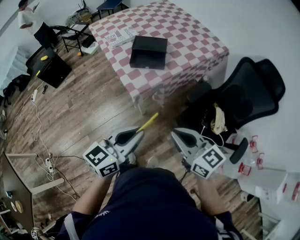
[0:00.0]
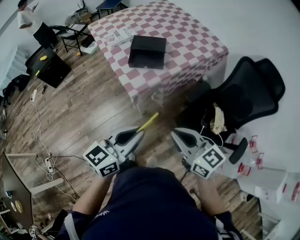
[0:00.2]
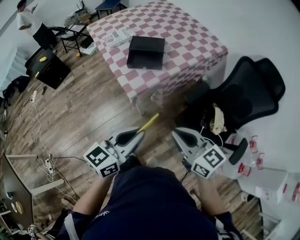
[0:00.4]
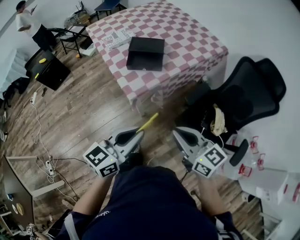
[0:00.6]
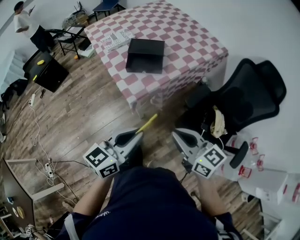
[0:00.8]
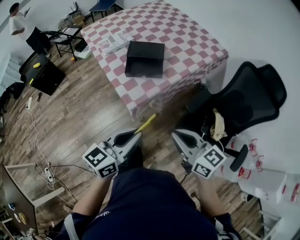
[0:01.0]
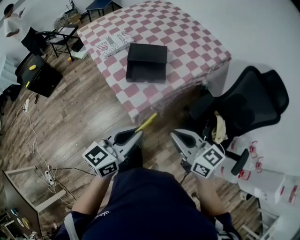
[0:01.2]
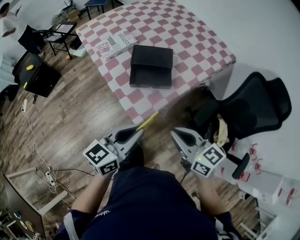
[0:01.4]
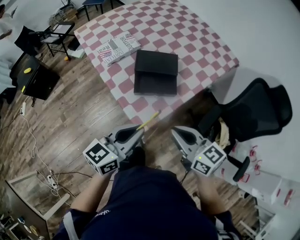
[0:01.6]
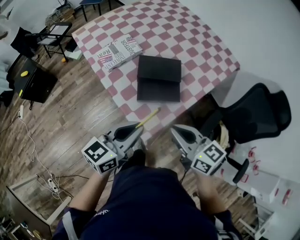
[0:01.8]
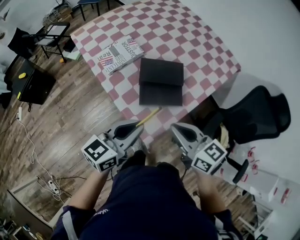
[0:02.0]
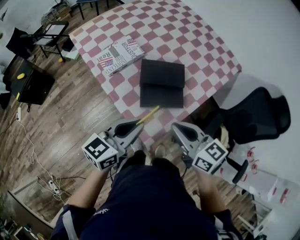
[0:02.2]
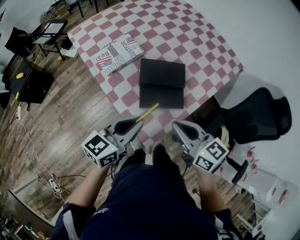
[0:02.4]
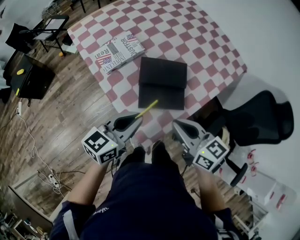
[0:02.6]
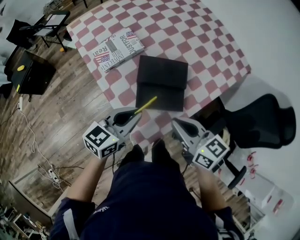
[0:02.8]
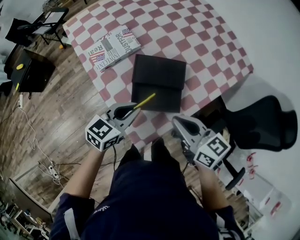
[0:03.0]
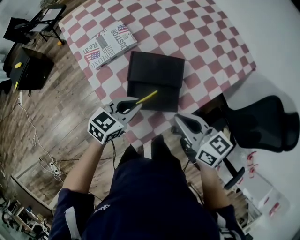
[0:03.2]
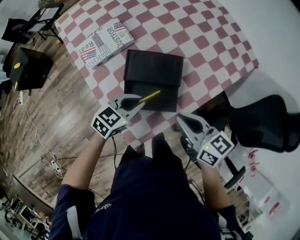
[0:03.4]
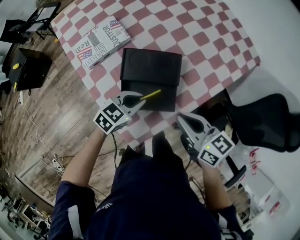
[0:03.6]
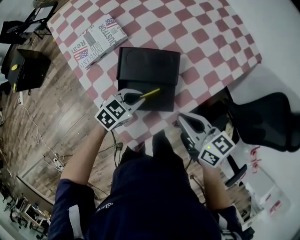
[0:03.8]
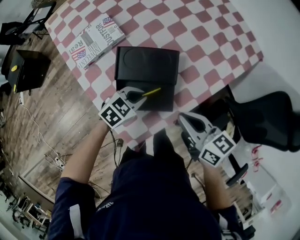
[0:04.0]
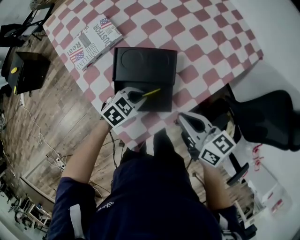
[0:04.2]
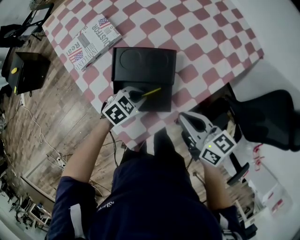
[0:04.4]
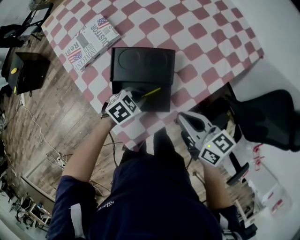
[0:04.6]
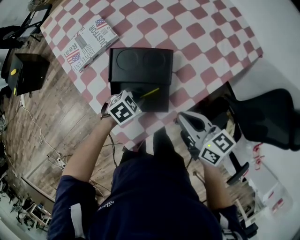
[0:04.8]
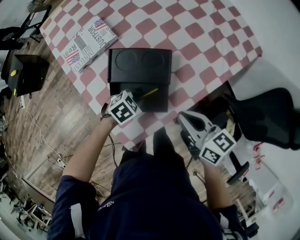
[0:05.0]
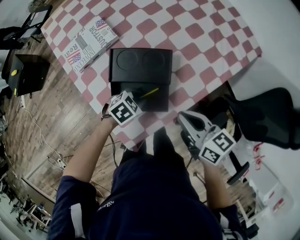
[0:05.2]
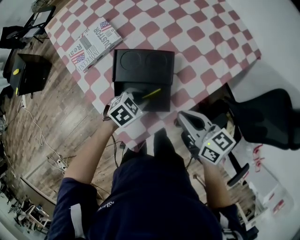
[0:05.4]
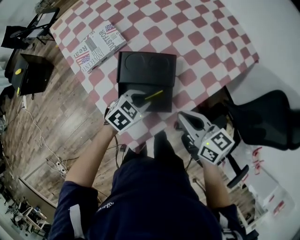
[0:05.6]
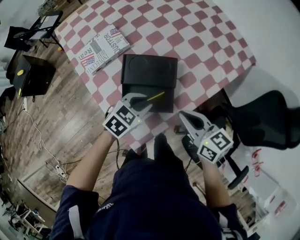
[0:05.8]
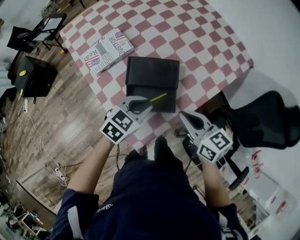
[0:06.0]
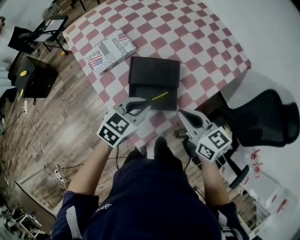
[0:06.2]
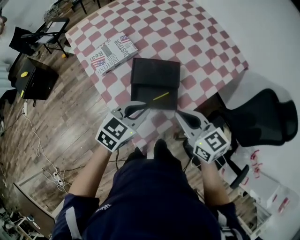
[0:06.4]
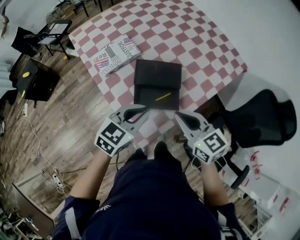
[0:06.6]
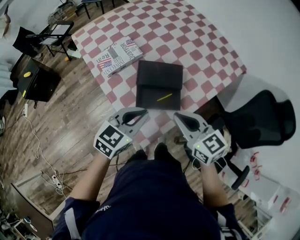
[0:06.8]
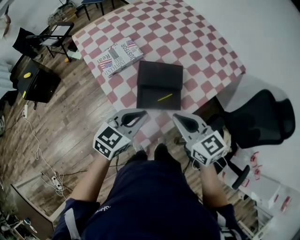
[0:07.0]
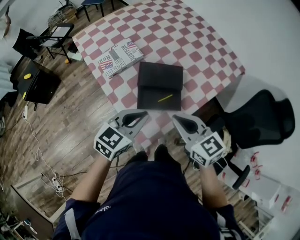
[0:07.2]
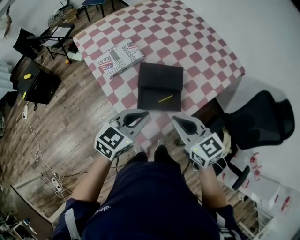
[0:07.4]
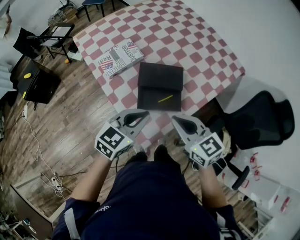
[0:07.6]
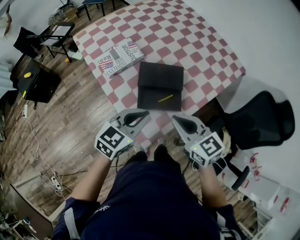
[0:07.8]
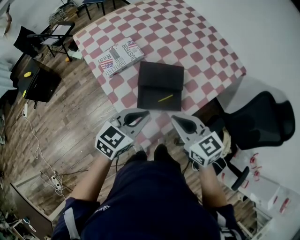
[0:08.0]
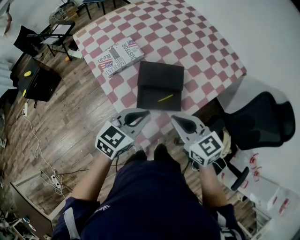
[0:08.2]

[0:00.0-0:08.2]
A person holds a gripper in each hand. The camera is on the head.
0.0 to 1.6 s: Both grippers travel together forward, about 25 cm.
1.6 to 3.2 s: The right gripper shifts about 20 cm forward; the left gripper shifts approximately 25 cm forward and downward, and turns by about 20 degrees.
3.2 to 5.0 s: The left gripper heads downward, covering some 15 cm, and angles its fingers downward, by approximately 30 degrees. The right gripper ends up about 10 cm from where it was.
5.0 to 6.6 s: The left gripper heads upward, covering about 25 cm, and angles its fingers upward, by some 30 degrees; the right gripper ends up approximately 15 cm from where it was, and rotates approximately 20 degrees.
6.6 to 8.2 s: The grippers move only a little.

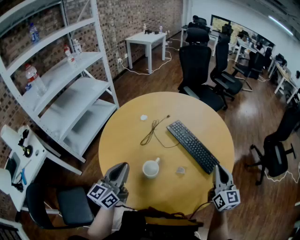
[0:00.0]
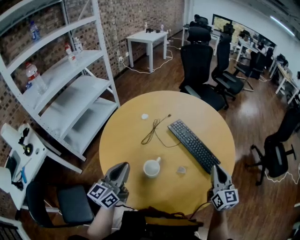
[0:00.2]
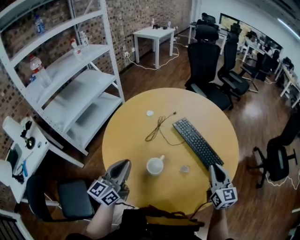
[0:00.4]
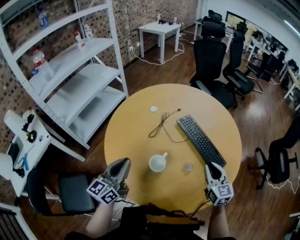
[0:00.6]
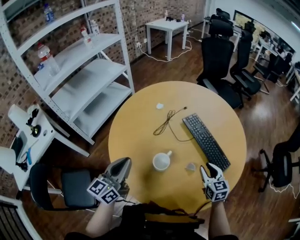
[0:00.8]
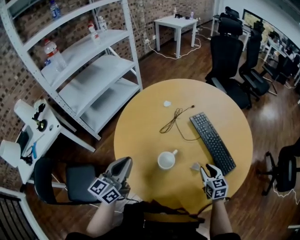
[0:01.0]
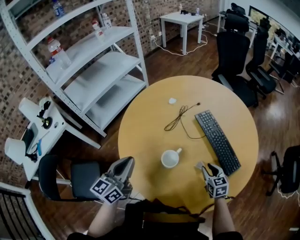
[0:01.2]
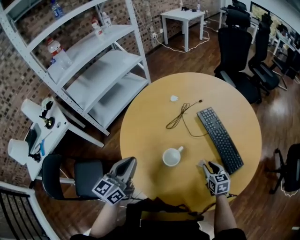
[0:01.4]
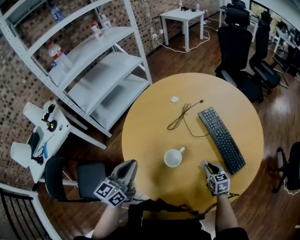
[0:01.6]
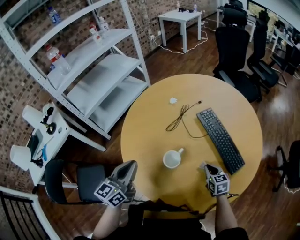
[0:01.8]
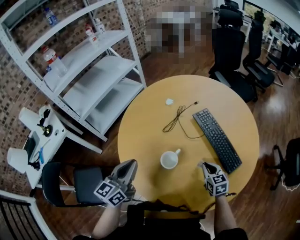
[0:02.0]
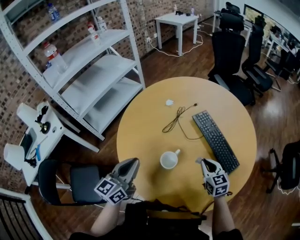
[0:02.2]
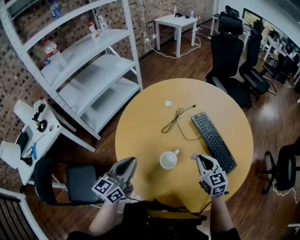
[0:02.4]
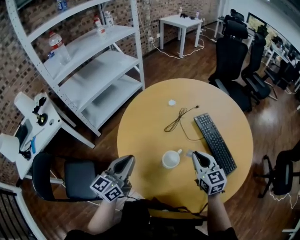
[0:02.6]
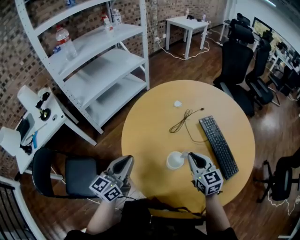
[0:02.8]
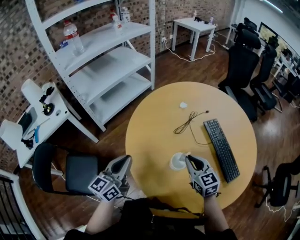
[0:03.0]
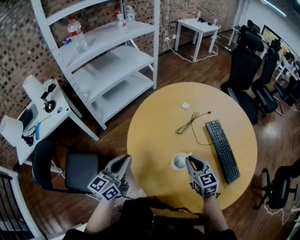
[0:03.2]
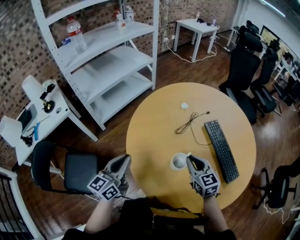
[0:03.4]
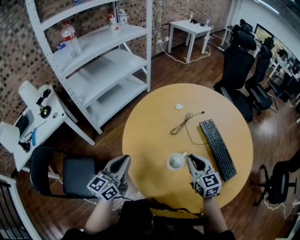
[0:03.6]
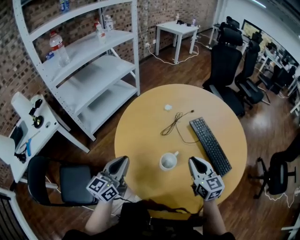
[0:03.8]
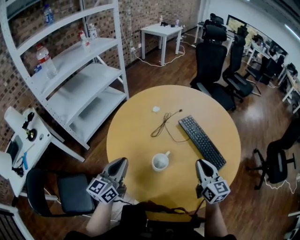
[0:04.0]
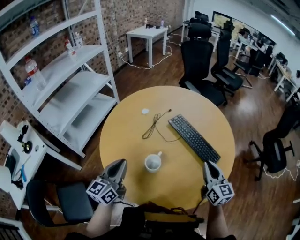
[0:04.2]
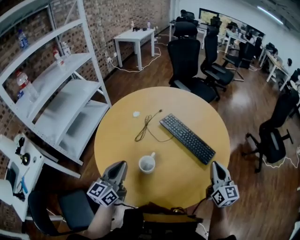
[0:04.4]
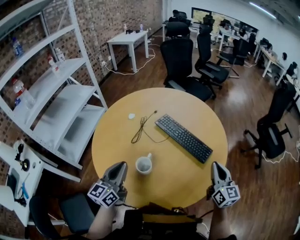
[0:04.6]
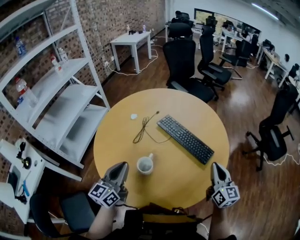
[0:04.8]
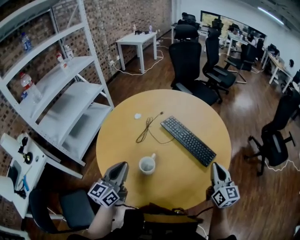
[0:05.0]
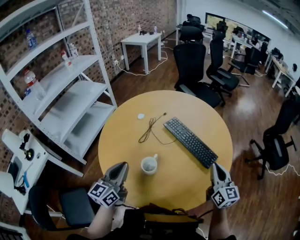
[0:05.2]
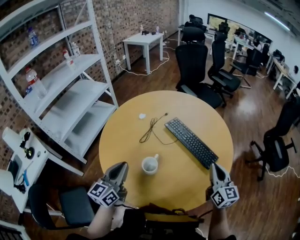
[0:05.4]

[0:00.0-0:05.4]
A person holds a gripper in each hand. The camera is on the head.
0.0 to 1.4 s: The right gripper shifts roughly 25 cm downward and to the left, tips its fingers downward by approximately 40 degrees, and opens.
1.4 to 2.8 s: The right gripper travels upward and to the left by approximately 20 cm, rotates about 20 degrees, and closes. Meanwhile the left gripper moves approximately 5 cm.
2.8 to 4.0 s: The right gripper shifts approximately 10 cm to the right and backward, and changes its angle by some 20 degrees.
4.0 to 5.4 s: The left gripper moves to the right, some 5 cm. The right gripper shifts about 15 cm to the right.

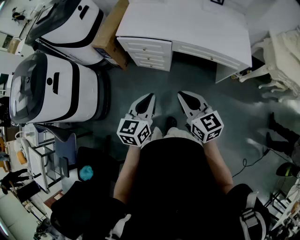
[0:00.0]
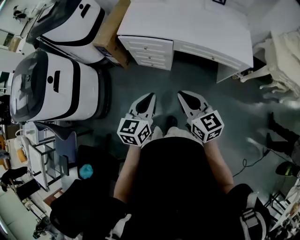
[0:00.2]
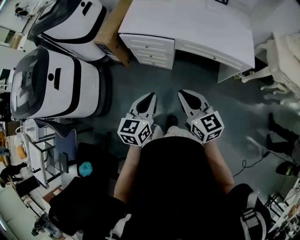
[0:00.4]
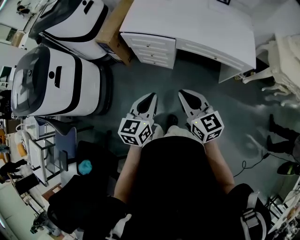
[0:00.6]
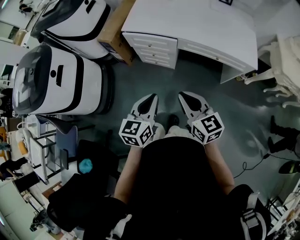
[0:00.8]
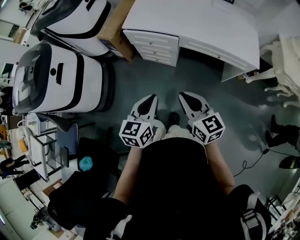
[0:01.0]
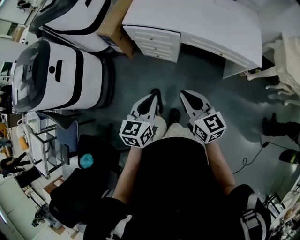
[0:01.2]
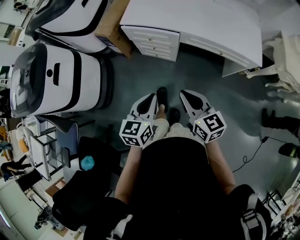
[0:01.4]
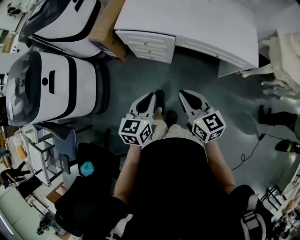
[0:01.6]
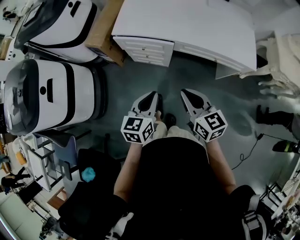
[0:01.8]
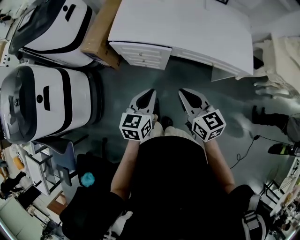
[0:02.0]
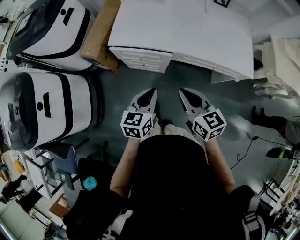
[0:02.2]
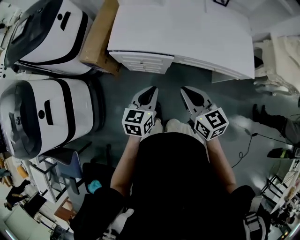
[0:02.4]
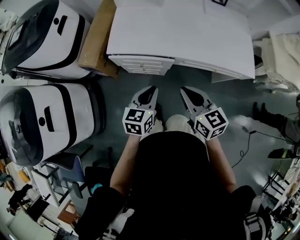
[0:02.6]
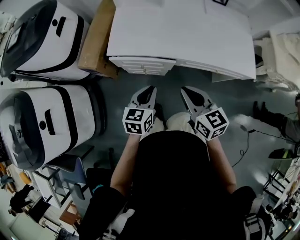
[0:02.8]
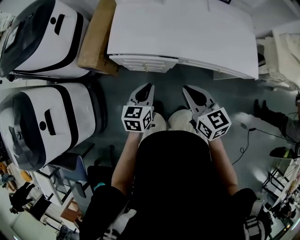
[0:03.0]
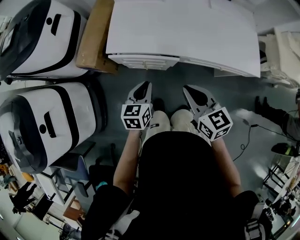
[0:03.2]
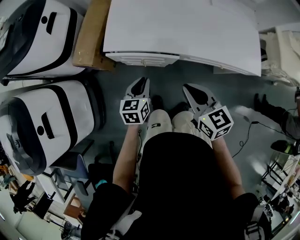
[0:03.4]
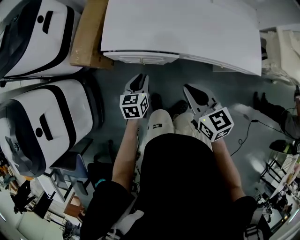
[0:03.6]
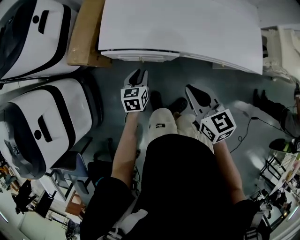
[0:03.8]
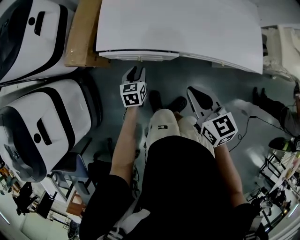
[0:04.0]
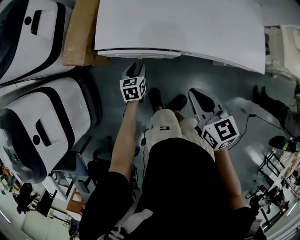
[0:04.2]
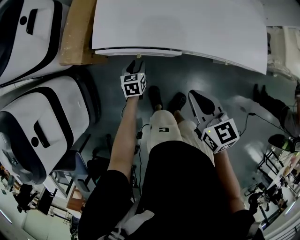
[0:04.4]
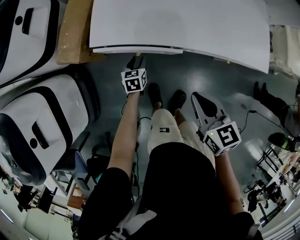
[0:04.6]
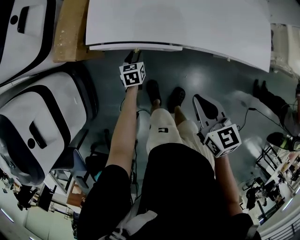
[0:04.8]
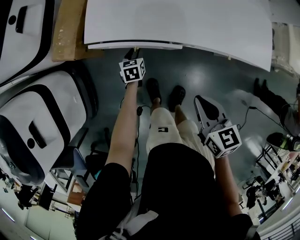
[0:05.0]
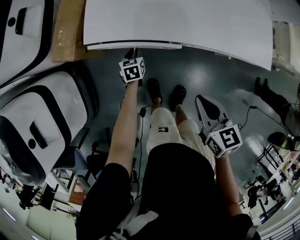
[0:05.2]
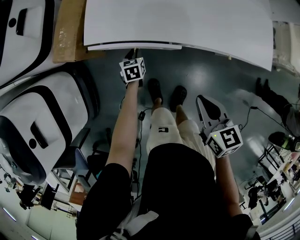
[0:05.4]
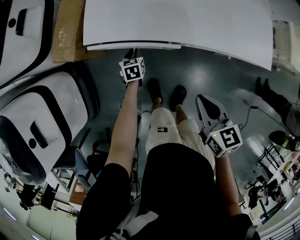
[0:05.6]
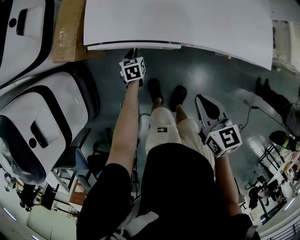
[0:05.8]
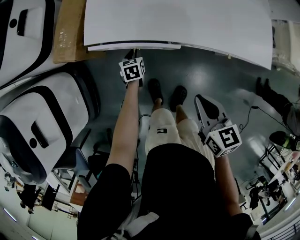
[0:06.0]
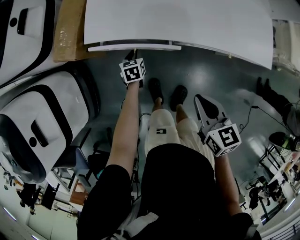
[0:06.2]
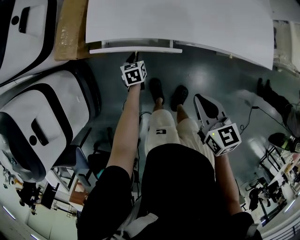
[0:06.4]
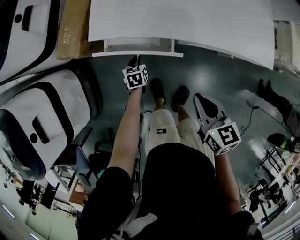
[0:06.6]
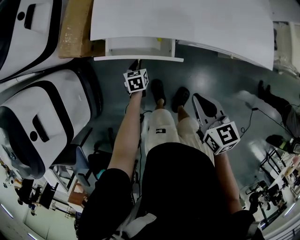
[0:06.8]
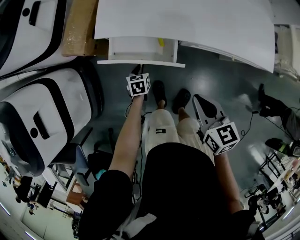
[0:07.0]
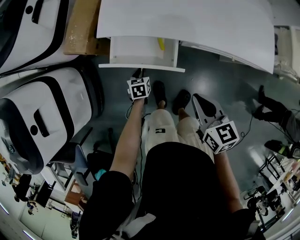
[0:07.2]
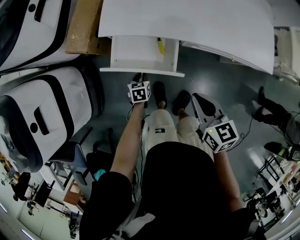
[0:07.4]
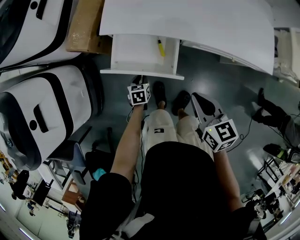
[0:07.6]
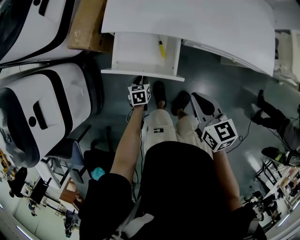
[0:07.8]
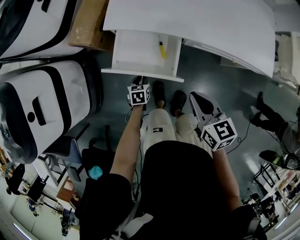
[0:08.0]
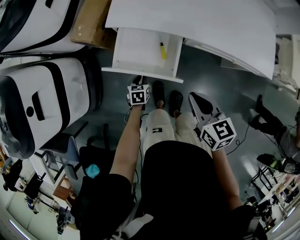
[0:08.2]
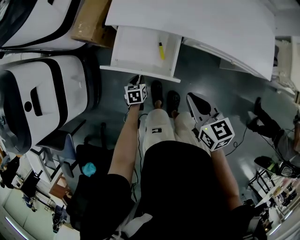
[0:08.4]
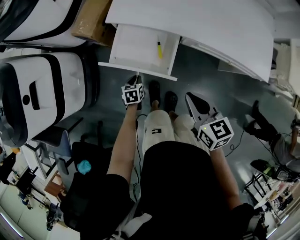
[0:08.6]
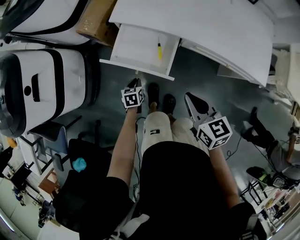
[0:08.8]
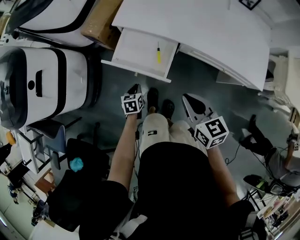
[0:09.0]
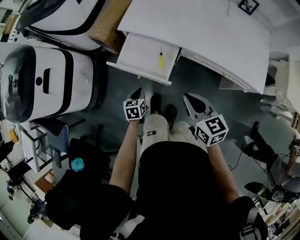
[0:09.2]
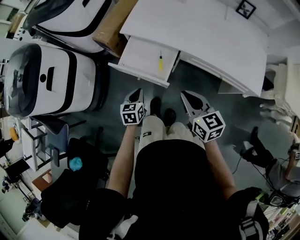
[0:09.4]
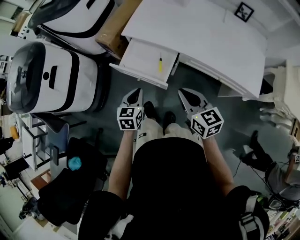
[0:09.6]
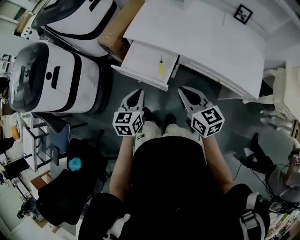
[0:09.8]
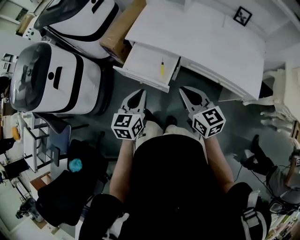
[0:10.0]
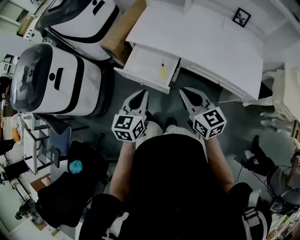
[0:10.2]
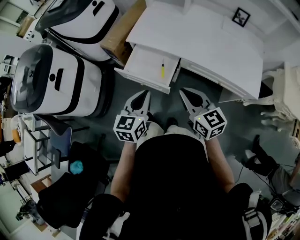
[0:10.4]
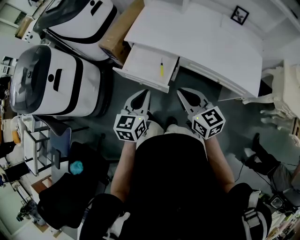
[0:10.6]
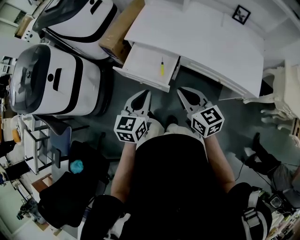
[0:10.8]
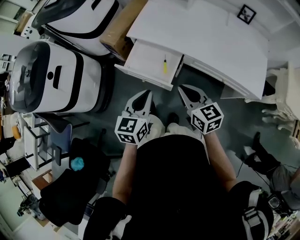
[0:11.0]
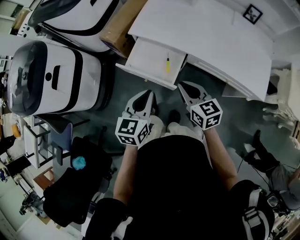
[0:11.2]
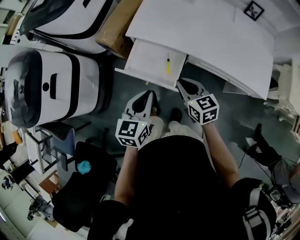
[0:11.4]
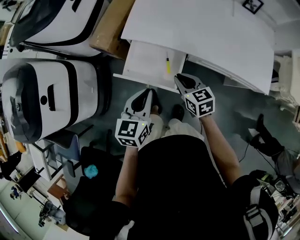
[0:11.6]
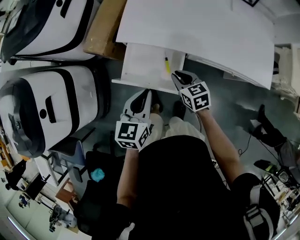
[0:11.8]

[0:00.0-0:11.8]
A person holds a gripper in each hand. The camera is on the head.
0.0 to 1.4 s: There are only small adjustments of the grippers.
1.4 to 3.0 s: Both grippers travel together forward, about 25 cm.
3.0 to 4.4 s: The left gripper heads downward and forward, covering roughly 30 cm, and opens its fingers; the right gripper travels downward by approximately 5 cm.
4.4 to 6.0 s: The right gripper changes place by roughly 5 cm. Meanwhile the left gripper goes about 5 cm downward.
6.0 to 7.4 s: The left gripper heads backward, covering about 15 cm.
7.4 to 8.8 s: The left gripper heads backward, covering some 10 cm; the right gripper goes roughly 5 cm backward.
8.8 to 10.4 s: The left gripper moves upward, roughly 35 cm, and angles its fingers upward, by some 30 degrees. Meanwhile the right gripper shifts some 10 cm upward, and turns by about 20 degrees.
10.4 to 11.8 s: The right gripper shifts about 30 cm forward and downward, and rotates some 30 degrees. Meanwhile the left gripper is displaced forward and downward by some 20 cm.
